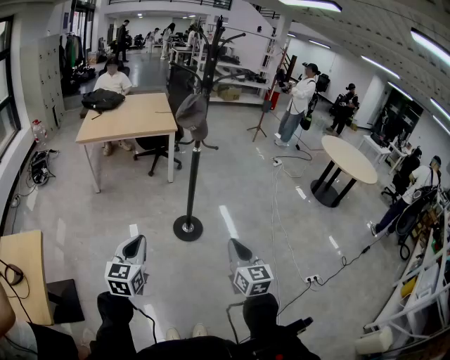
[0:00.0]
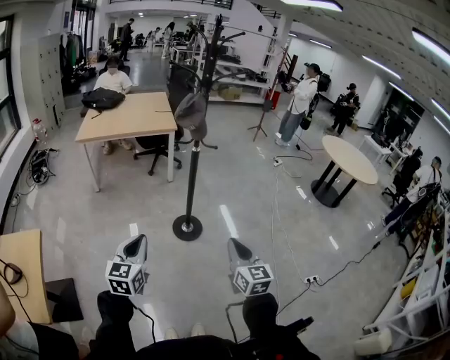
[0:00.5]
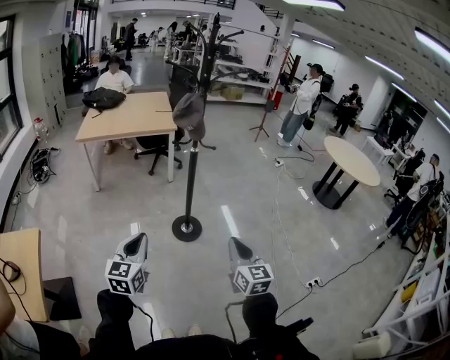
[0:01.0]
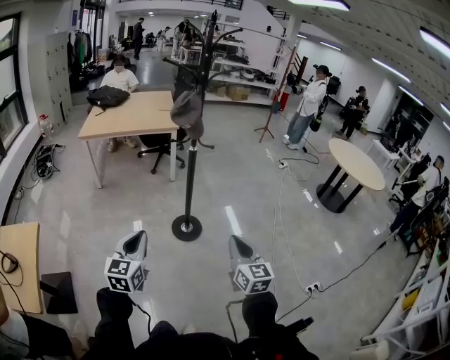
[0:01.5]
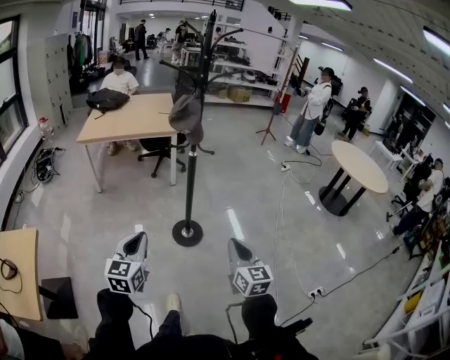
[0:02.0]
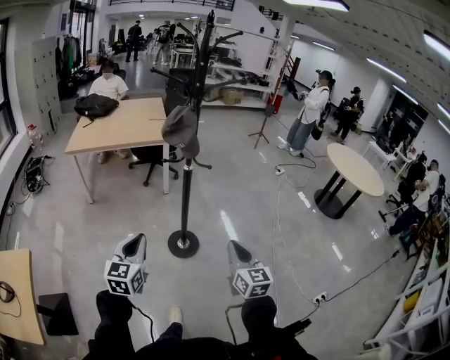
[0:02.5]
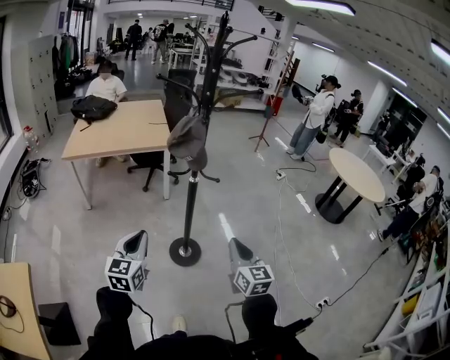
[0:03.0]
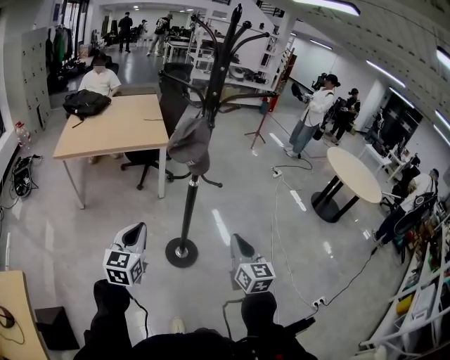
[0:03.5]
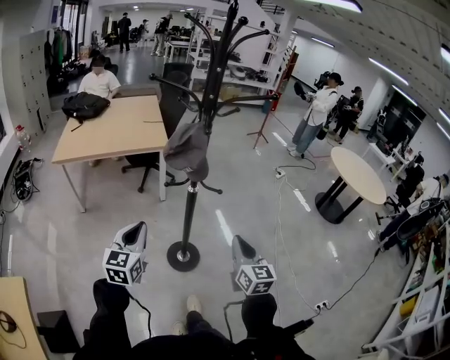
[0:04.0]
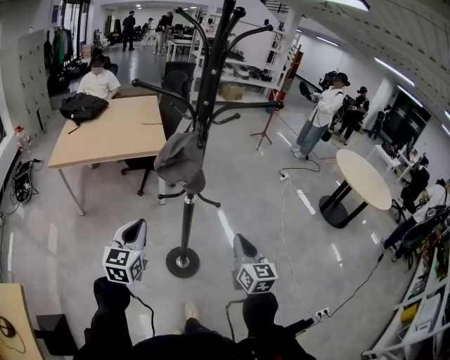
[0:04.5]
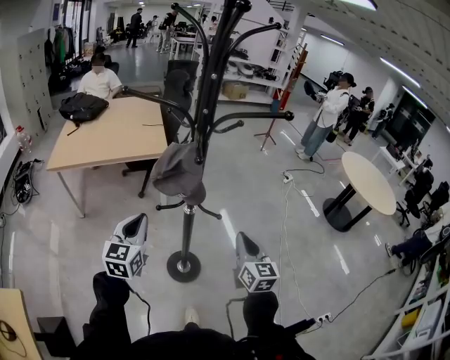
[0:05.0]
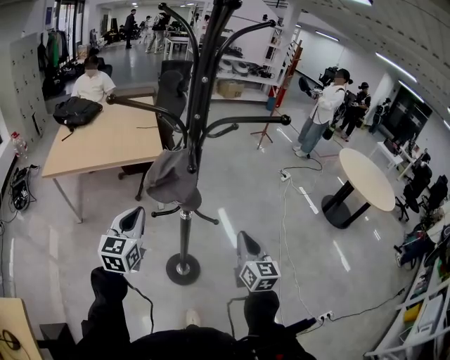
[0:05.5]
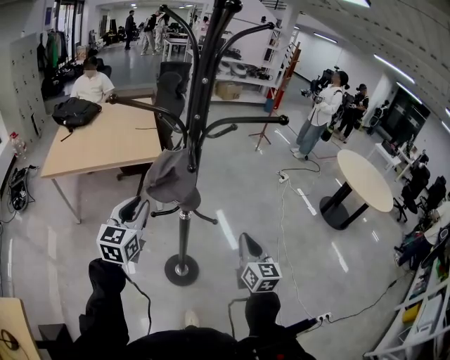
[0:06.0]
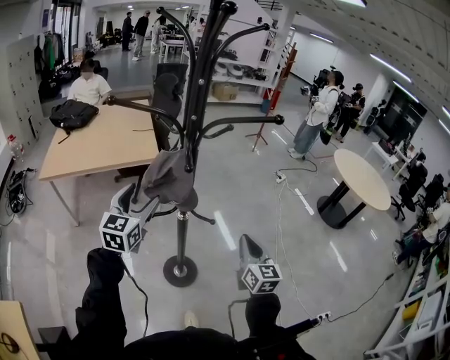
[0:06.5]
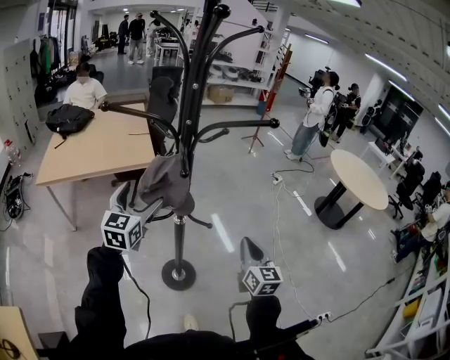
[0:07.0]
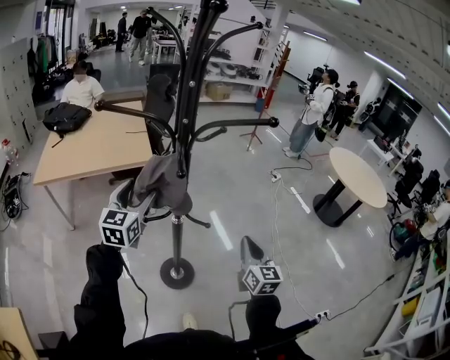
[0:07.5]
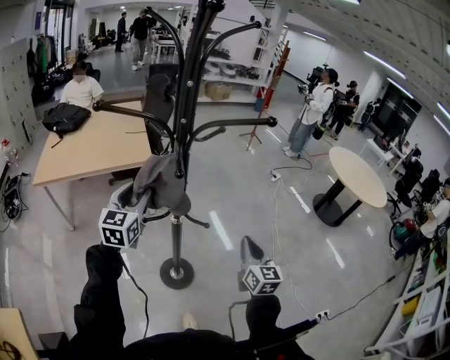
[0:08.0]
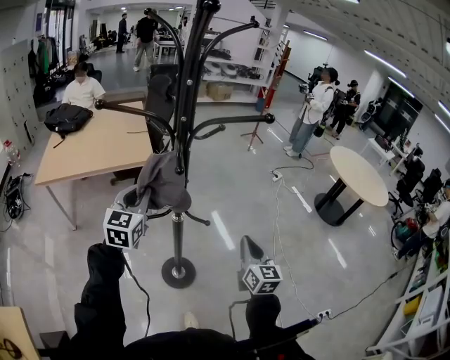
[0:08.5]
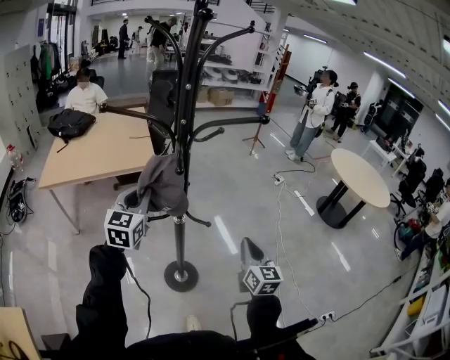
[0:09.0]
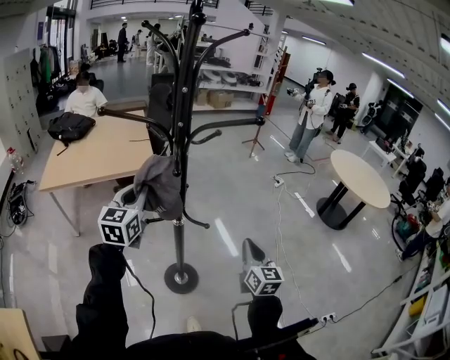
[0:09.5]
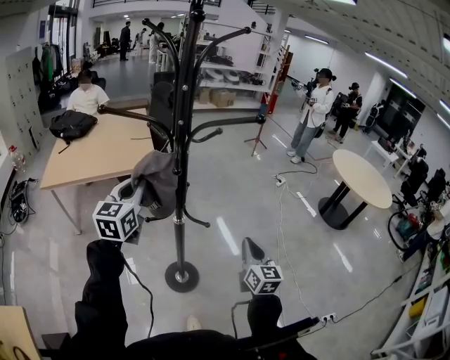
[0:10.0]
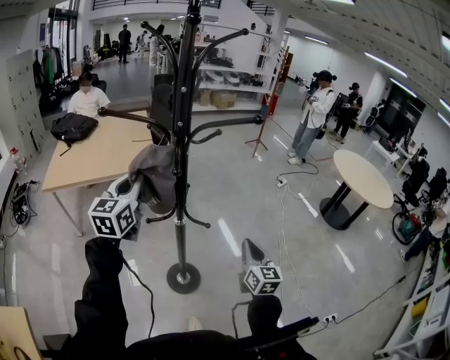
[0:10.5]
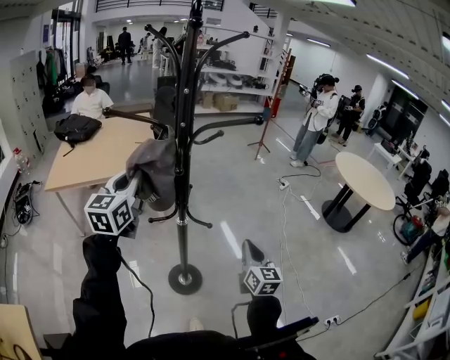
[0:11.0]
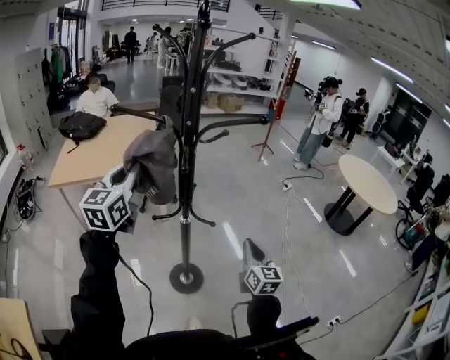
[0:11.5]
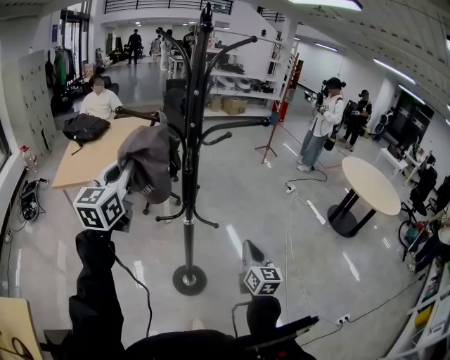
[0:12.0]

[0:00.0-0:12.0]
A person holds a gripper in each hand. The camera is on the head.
0:00.0 to 0:02.0: The right gripper travels forward and to the right by roughly 10 cm; the left gripper goes roughly 10 cm to the right and forward.
0:02.0 to 0:04.0: Both grippers move forward, approximately 25 cm.
0:04.0 to 0:06.0: Both grippers move forward, roughly 15 cm.
0:06.0 to 0:08.0: The left gripper is displaced forward by roughly 5 cm, and opens, then closes once more.
0:08.0 to 0:10.0: The left gripper shifts some 5 cm upward.
0:10.0 to 0:12.0: The left gripper is displaced upward by some 10 cm.

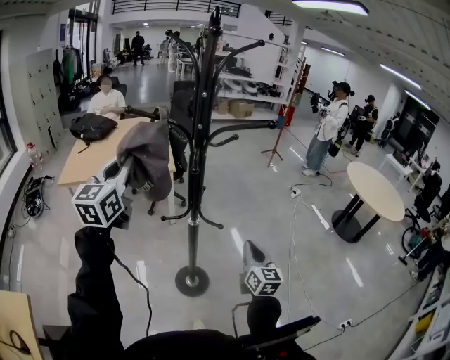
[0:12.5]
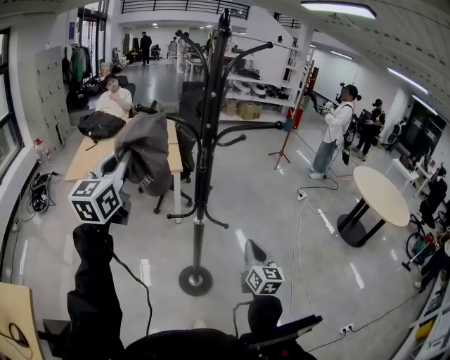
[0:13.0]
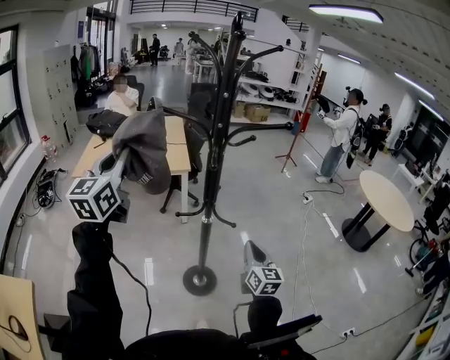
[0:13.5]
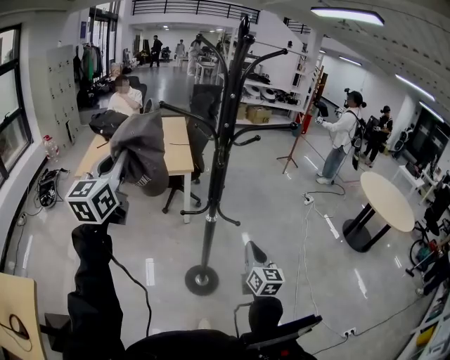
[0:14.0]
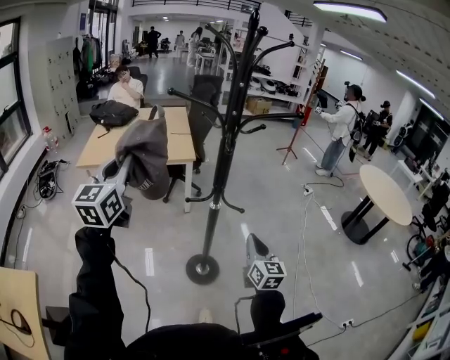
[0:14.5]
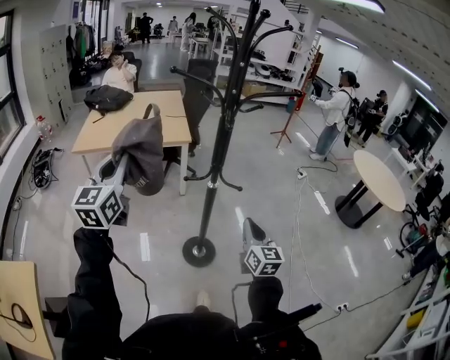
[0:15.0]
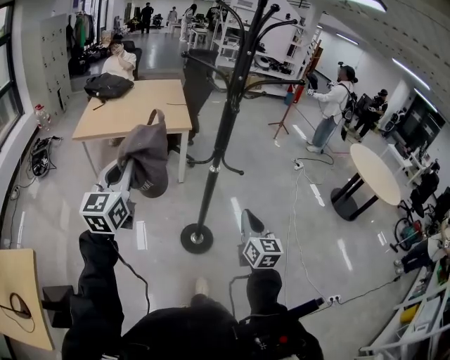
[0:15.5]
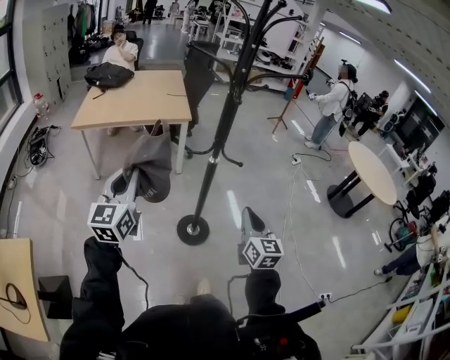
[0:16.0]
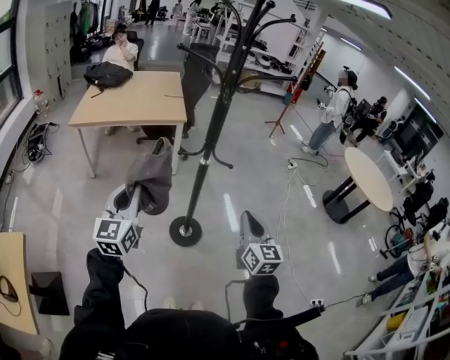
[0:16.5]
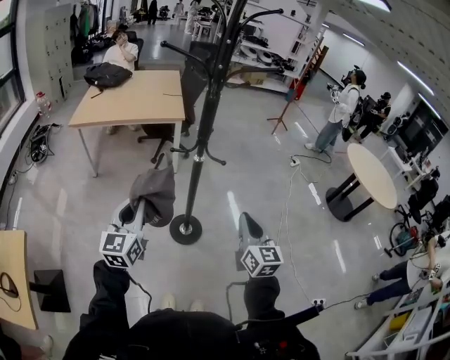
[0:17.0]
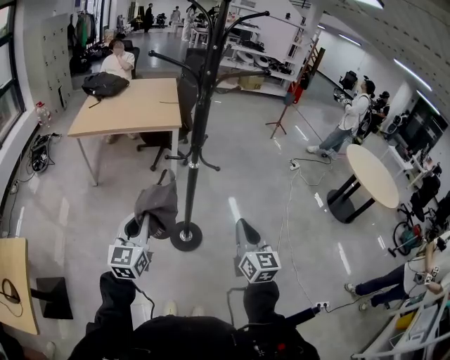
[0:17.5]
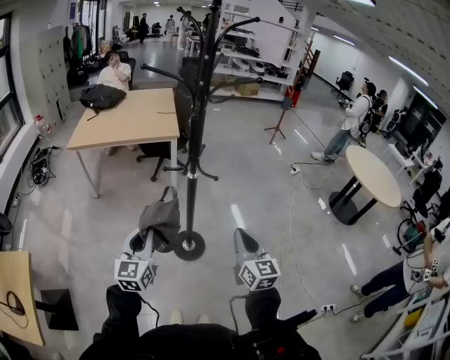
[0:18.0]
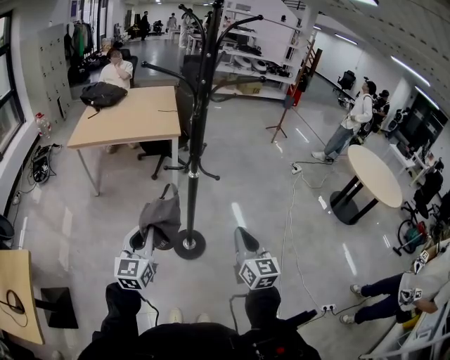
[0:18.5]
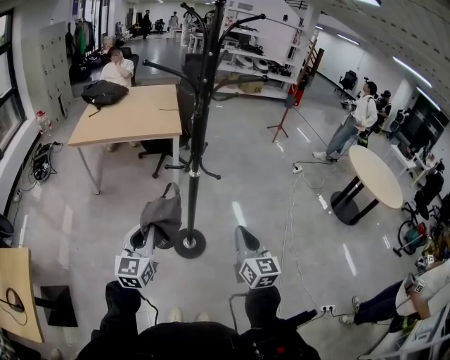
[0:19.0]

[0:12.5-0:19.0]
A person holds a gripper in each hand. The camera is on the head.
0:12.5 to 0:14.5: The left gripper goes some 10 cm to the left and backward, while the right gripper is displaced to the left by approximately 5 cm.
0:14.5 to 0:17.0: The right gripper travels backward by some 10 cm; the left gripper heads downward, backward and to the right, covering some 30 cm.
0:17.0 to 0:19.0: The left gripper changes place by about 5 cm.

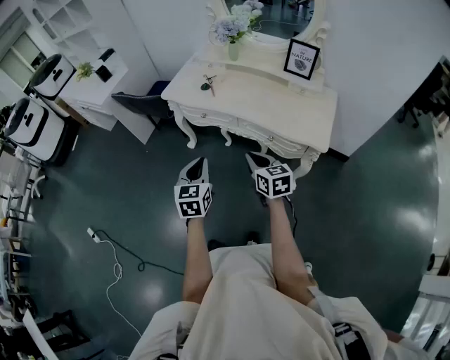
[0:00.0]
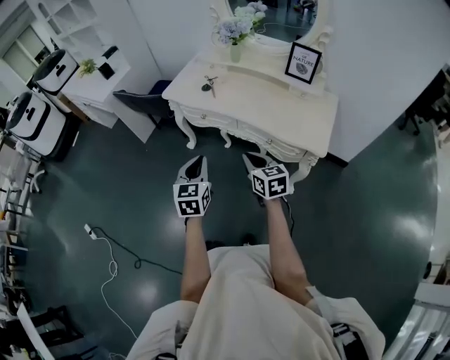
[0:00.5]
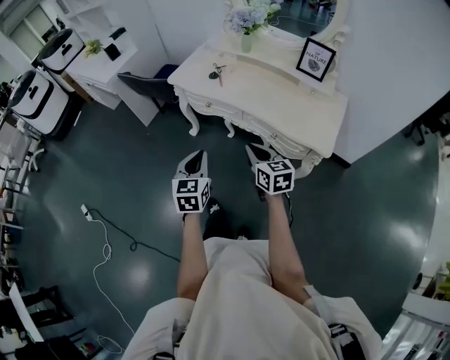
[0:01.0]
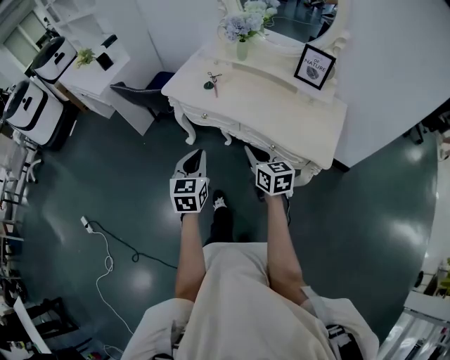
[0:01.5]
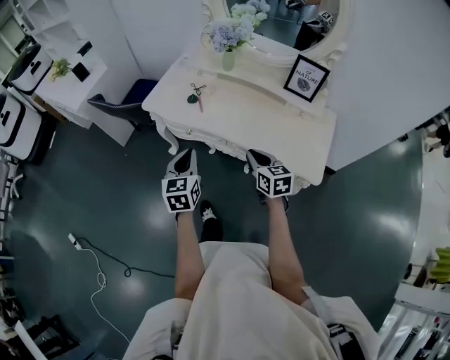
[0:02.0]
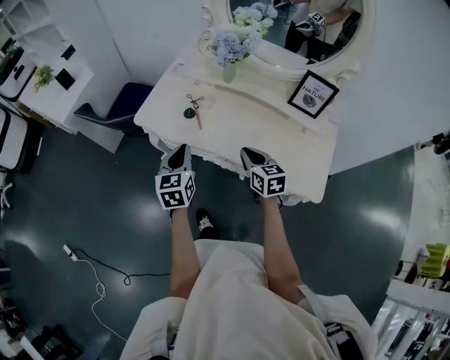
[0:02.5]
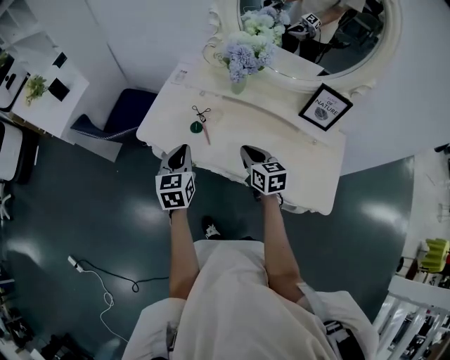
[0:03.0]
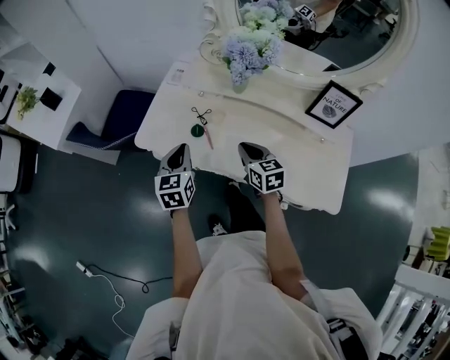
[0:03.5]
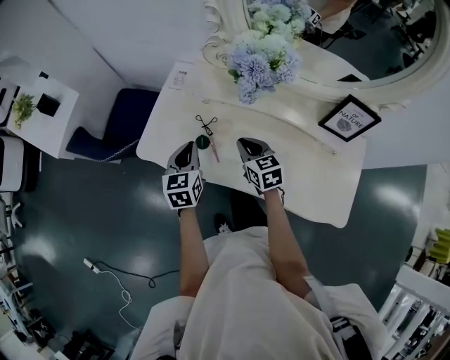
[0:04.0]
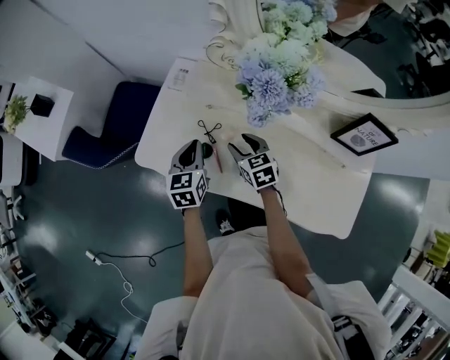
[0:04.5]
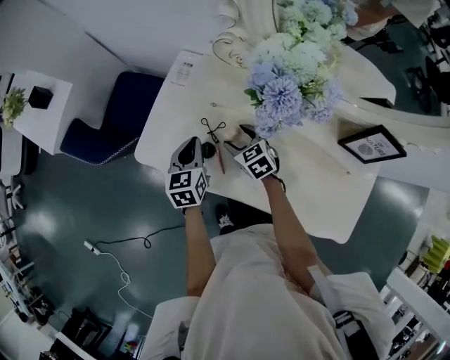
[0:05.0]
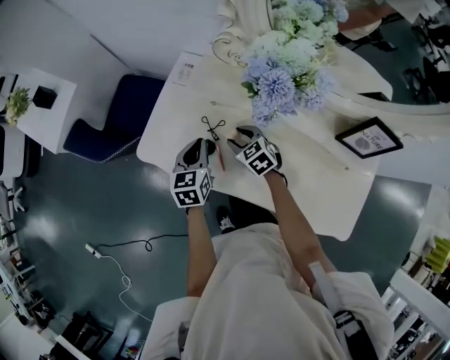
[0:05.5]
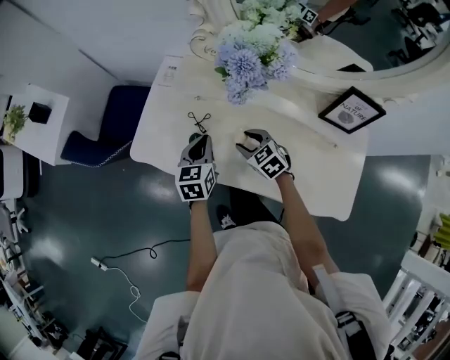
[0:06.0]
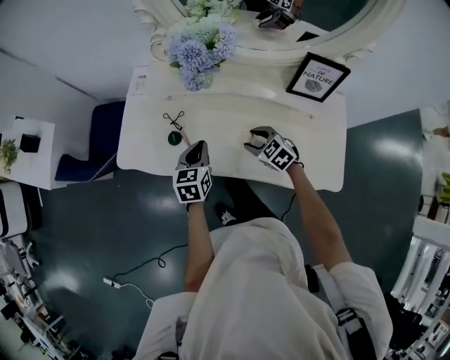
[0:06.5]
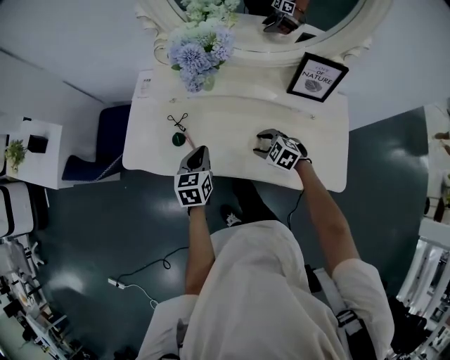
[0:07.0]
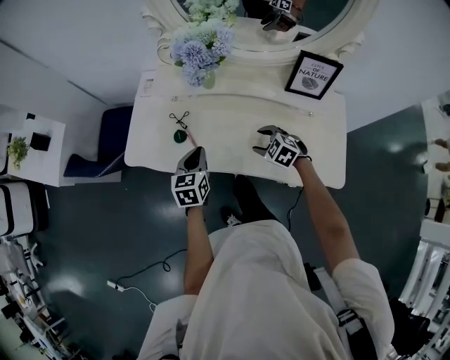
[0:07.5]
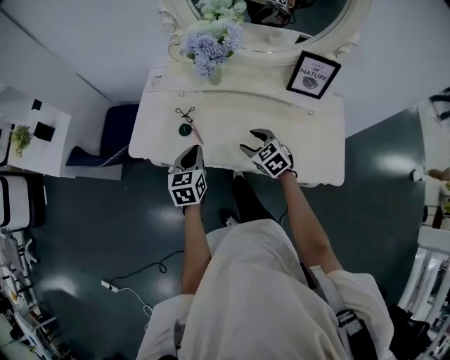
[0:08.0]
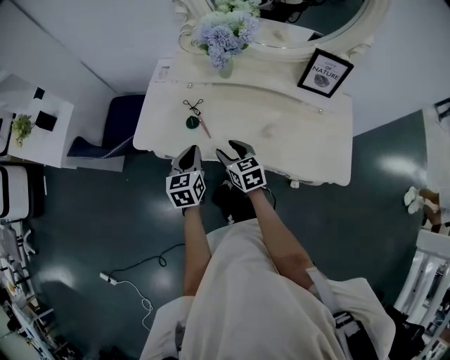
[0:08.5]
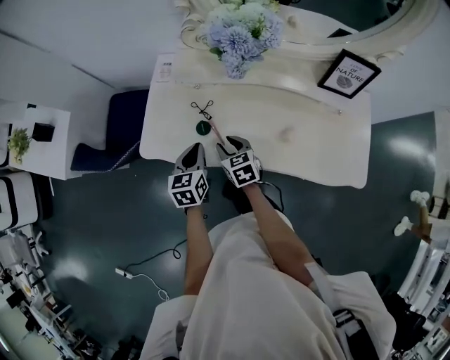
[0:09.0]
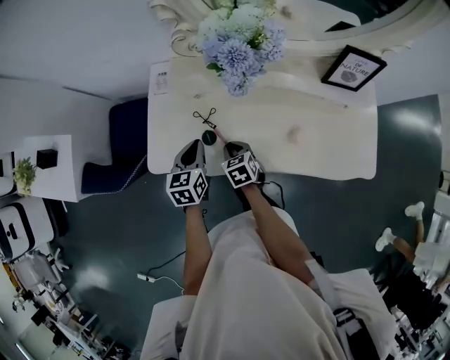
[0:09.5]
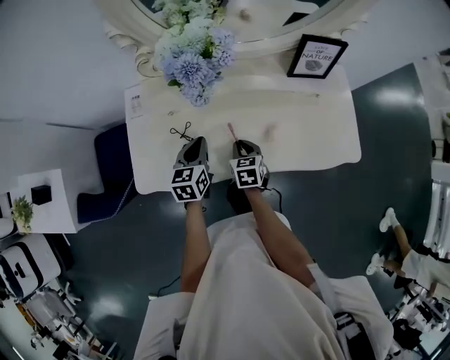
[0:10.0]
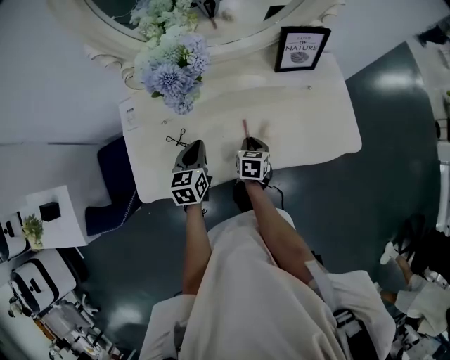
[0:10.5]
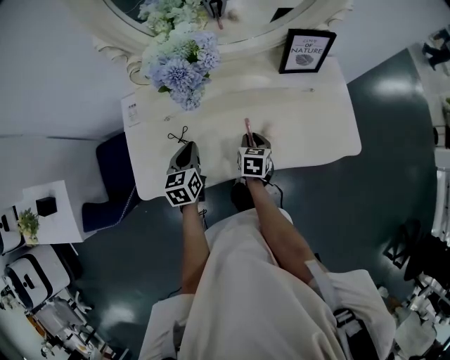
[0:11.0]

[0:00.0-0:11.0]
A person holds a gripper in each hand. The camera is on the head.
0:00.0 to 0:02.0: The right gripper shifts about 20 cm forward and to the right; the left gripper heads forward, covering some 20 cm.
0:02.0 to 0:03.5: The two grippers go some 25 cm forward.
0:03.5 to 0:05.5: The left gripper is displaced forward, downward and to the right by roughly 15 cm, while the right gripper shifts about 20 cm forward and downward, turns by about 30 degrees, and opens its fingers.
0:05.5 to 0:07.5: The right gripper shifts roughly 25 cm backward and to the right; the left gripper heads backward and to the right, covering approximately 15 cm.
0:07.5 to 0:09.0: The right gripper travels to the left by about 20 cm, and swivels approximately 40 degrees, while the left gripper is displaced to the left by roughly 10 cm.
0:09.0 to 0:11.0: The right gripper ends up about 20 cm from where it was, and turns by approximately 50 degrees. Meanwhile the left gripper ends up roughly 10 cm from where it was.
